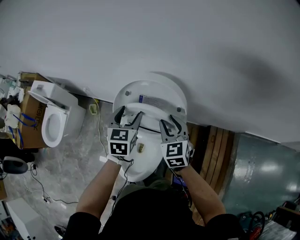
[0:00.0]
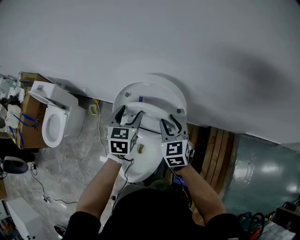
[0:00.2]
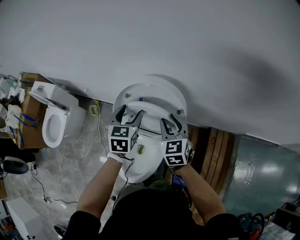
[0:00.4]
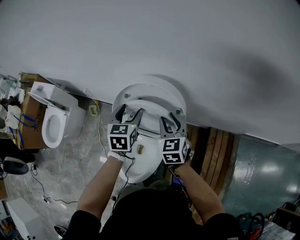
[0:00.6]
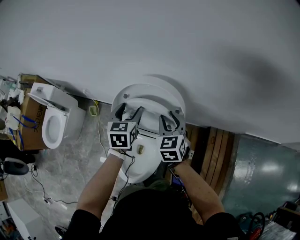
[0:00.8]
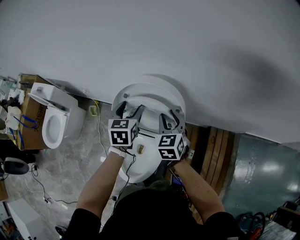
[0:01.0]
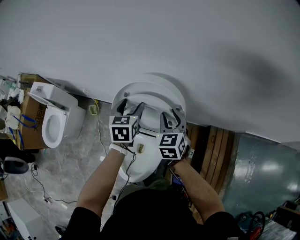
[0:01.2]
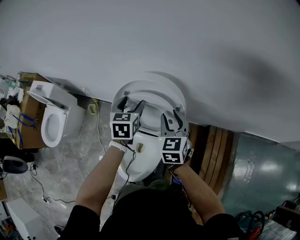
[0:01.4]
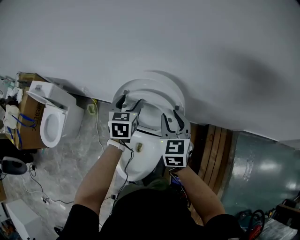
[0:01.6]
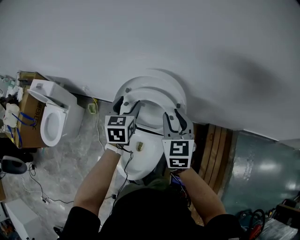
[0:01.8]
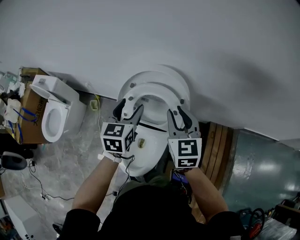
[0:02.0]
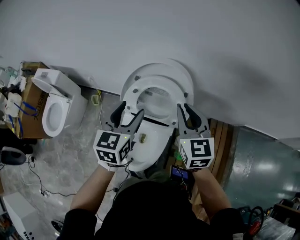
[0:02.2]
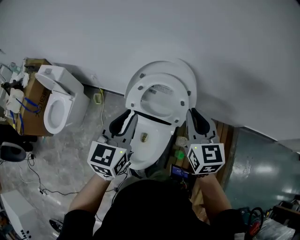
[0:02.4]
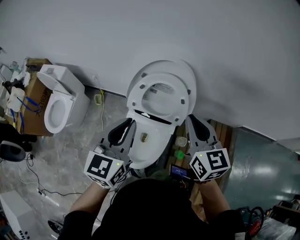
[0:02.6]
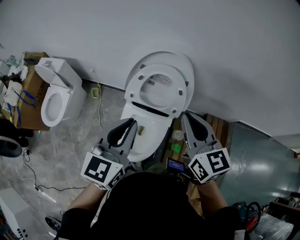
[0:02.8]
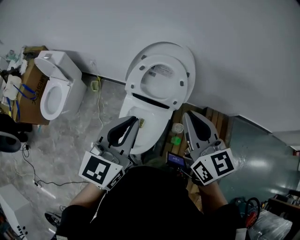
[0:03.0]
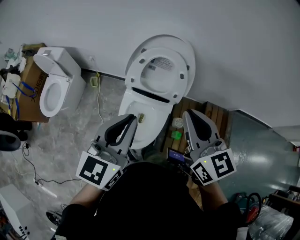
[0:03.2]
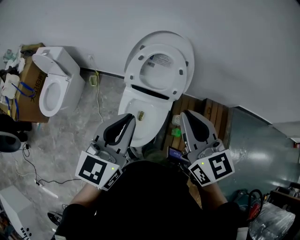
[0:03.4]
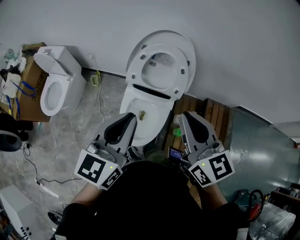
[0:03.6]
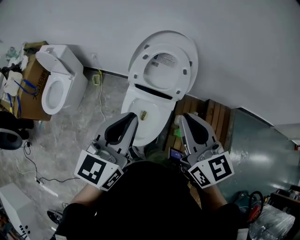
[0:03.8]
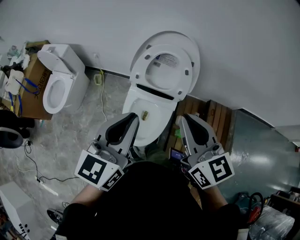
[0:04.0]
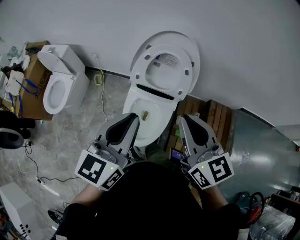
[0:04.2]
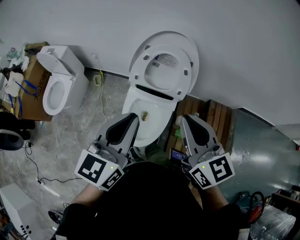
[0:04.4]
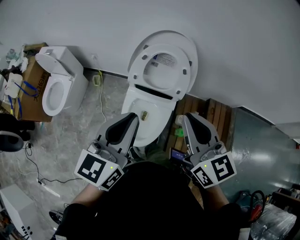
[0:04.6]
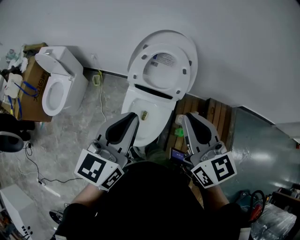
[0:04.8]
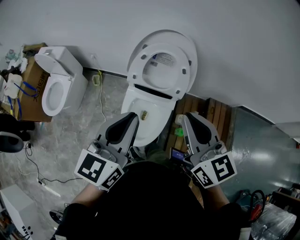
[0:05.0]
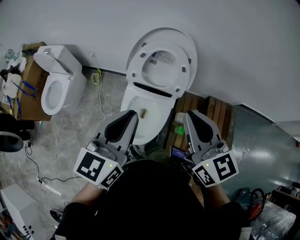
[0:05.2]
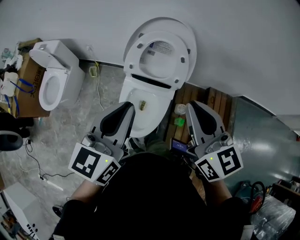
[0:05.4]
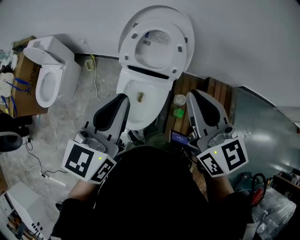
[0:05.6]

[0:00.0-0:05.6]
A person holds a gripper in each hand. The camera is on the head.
0:00.0 to 0:01.4: The left gripper ends up roughly 5 cm from where it was.
0:01.4 to 0:02.8: Both grippers travel together backward and upward, about 30 cm. The right gripper rotates some 30 degrees, and closes up. The left gripper changes its angle by roughly 30 degrees, and closes its fingers.
0:02.8 to 0:04.2: The grippers both shift backward by approximately 10 cm.
0:04.2 to 0:05.6: The right gripper moves roughly 5 cm.

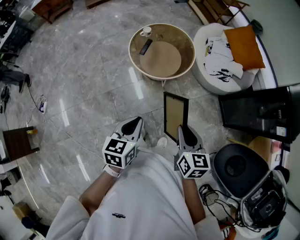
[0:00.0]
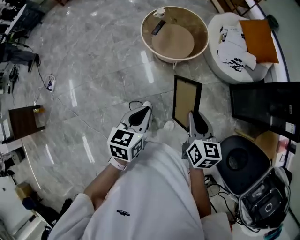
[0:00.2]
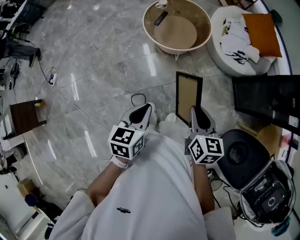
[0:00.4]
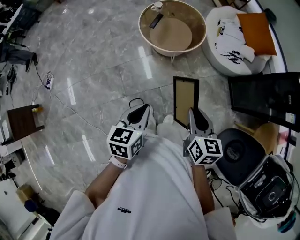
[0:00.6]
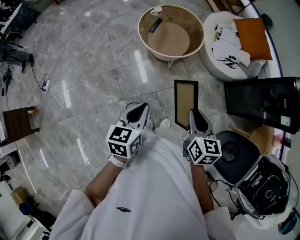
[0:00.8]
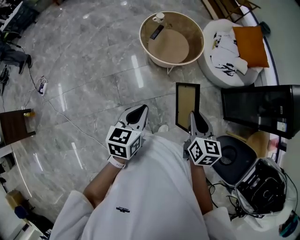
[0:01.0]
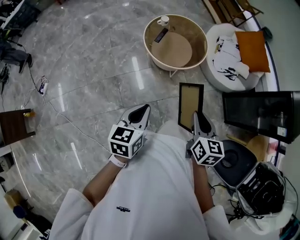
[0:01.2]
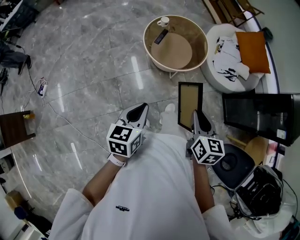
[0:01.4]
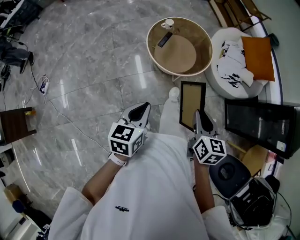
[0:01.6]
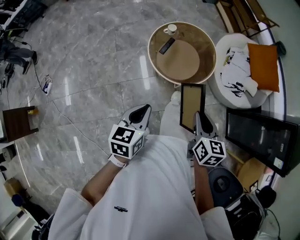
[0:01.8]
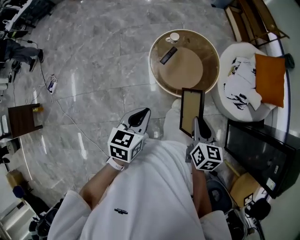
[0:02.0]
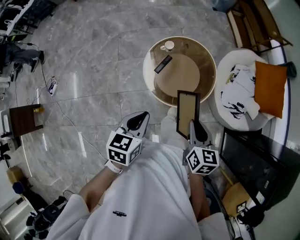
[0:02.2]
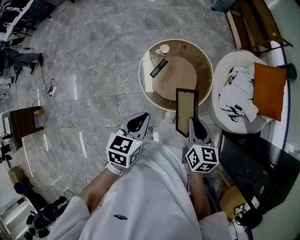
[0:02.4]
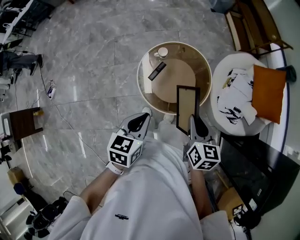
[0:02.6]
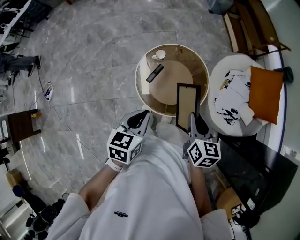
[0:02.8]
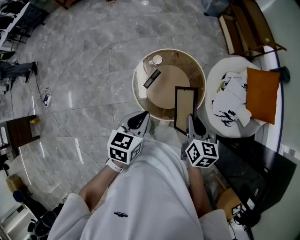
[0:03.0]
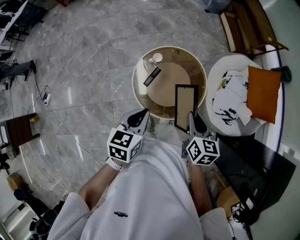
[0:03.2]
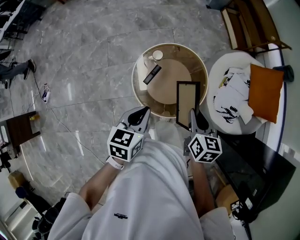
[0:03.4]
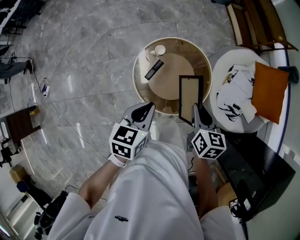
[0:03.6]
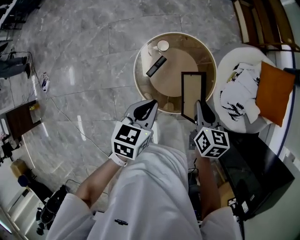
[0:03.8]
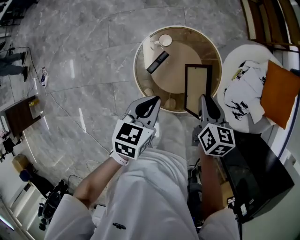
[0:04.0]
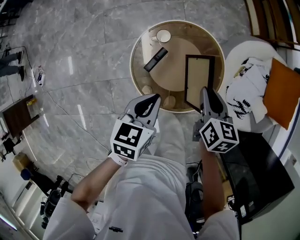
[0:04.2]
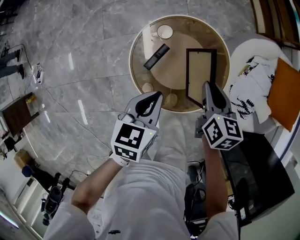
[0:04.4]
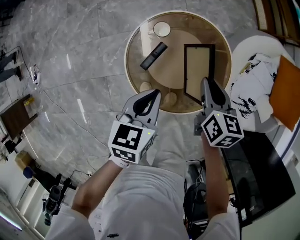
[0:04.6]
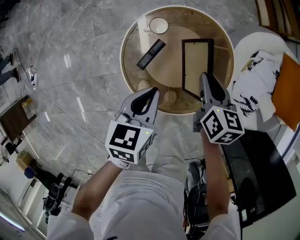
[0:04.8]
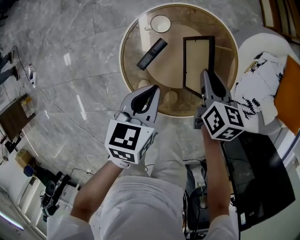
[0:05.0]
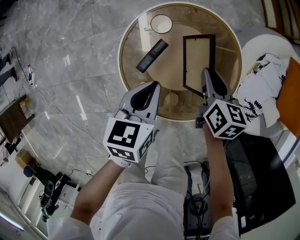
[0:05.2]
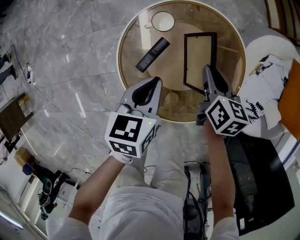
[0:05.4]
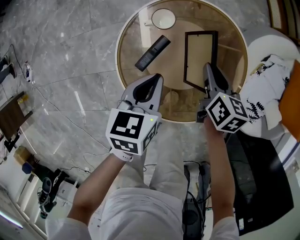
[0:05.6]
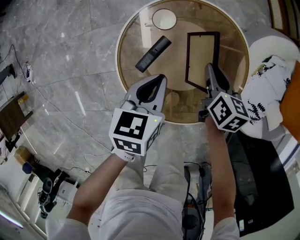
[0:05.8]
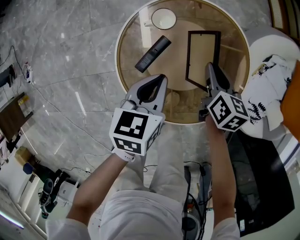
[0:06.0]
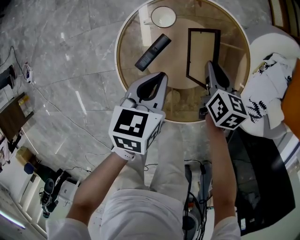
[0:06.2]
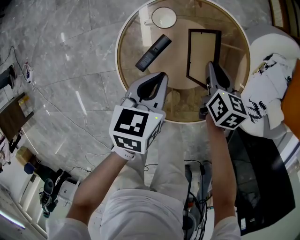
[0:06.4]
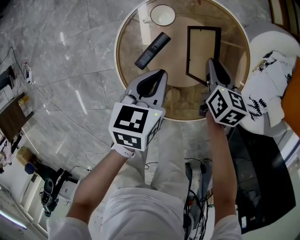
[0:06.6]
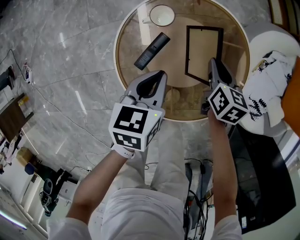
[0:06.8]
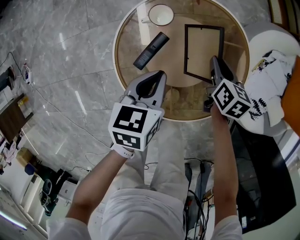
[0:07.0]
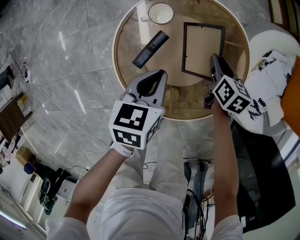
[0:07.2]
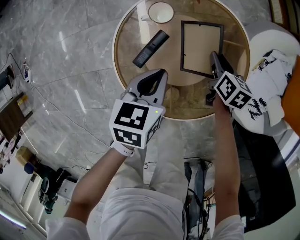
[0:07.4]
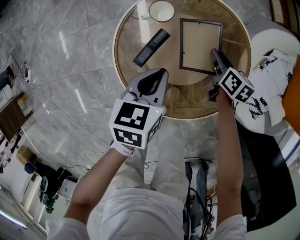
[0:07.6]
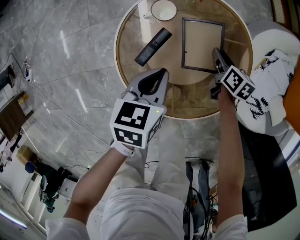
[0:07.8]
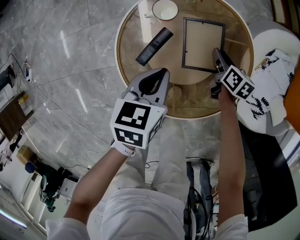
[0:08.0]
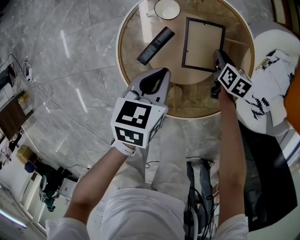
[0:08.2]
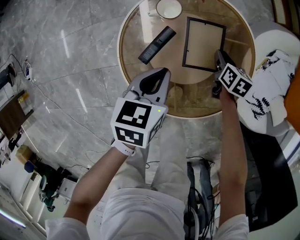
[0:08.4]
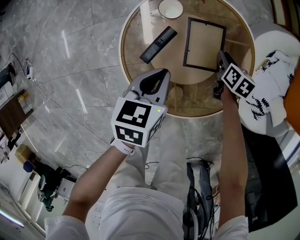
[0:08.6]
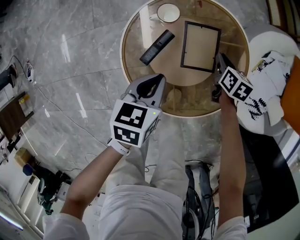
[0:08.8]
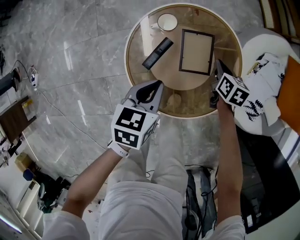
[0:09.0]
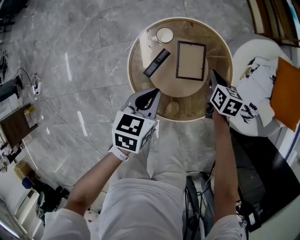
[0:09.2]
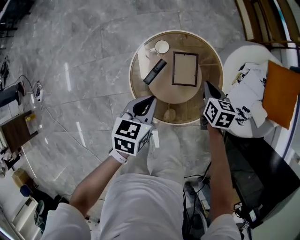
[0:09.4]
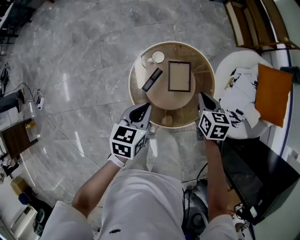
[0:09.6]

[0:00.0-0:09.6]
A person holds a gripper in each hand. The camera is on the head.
0:00.0 to 0:01.6: The right gripper heads forward, covering about 10 cm. Meanwhile the left gripper moves to the left and forward, some 10 cm.
0:01.6 to 0:03.2: Both grippers move forward, approximately 40 cm.
0:03.2 to 0:04.8: Both grippers travel together downward and forward, about 30 cm.
0:04.8 to 0:06.4: The two grippers go about 15 cm downward.
0:06.4 to 0:08.0: The right gripper travels downward by some 10 cm.
0:08.0 to 0:09.6: The two grippers go some 30 cm upward. The right gripper turns by some 20 degrees, and closes its fingers.

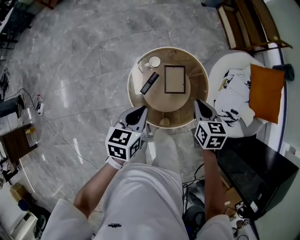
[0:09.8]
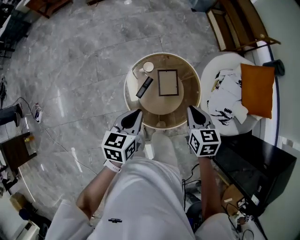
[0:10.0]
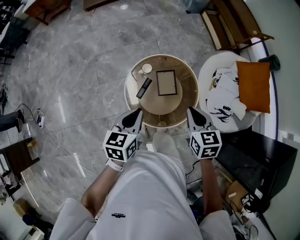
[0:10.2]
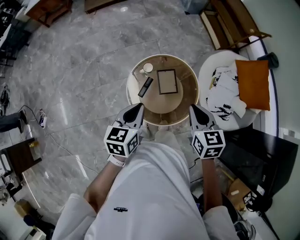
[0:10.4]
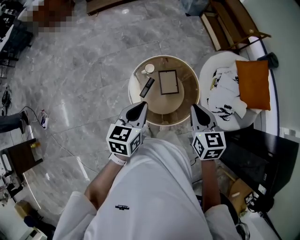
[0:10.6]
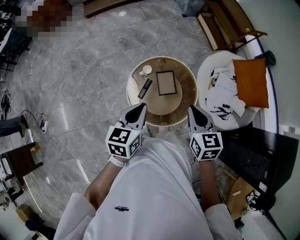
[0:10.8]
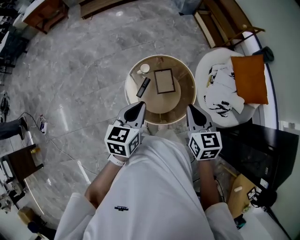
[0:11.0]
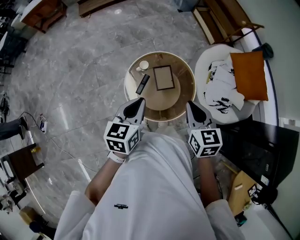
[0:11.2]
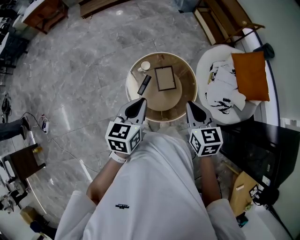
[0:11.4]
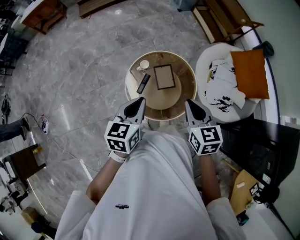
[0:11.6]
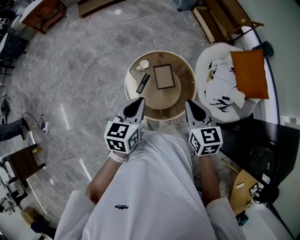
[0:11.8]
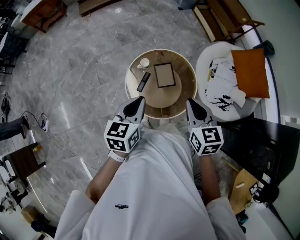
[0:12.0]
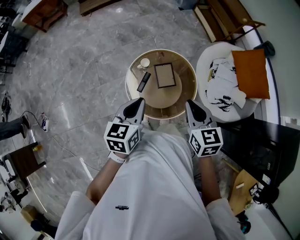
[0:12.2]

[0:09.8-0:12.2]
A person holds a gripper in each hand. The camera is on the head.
0:09.8 to 0:11.0: The left gripper shifts roughly 15 cm upward. The right gripper shifts about 20 cm upward and backward.
0:11.0 to 0:12.2: The two grippers keep their place.

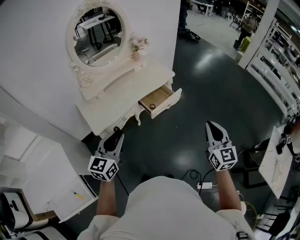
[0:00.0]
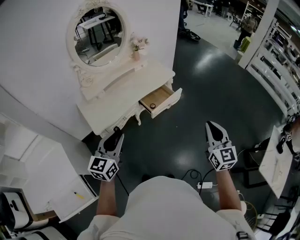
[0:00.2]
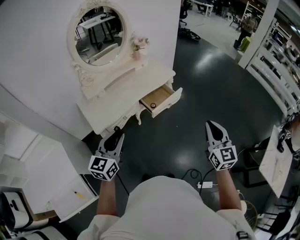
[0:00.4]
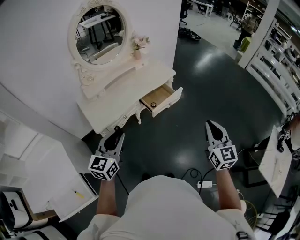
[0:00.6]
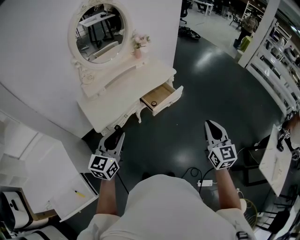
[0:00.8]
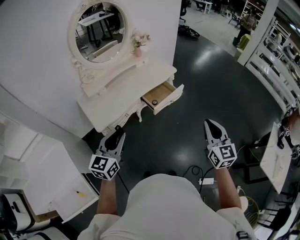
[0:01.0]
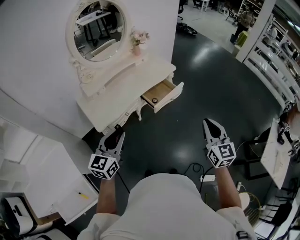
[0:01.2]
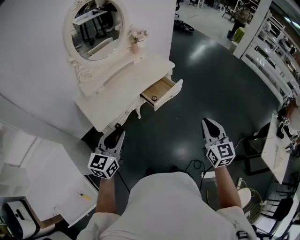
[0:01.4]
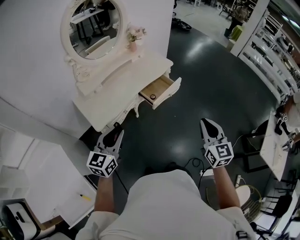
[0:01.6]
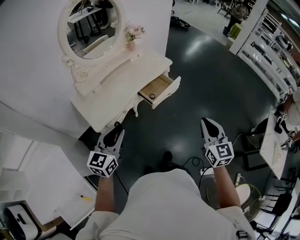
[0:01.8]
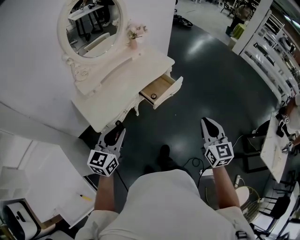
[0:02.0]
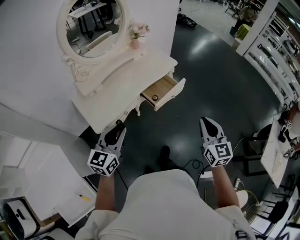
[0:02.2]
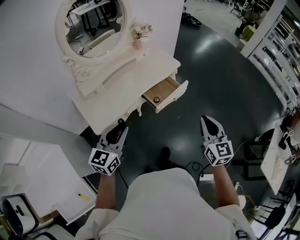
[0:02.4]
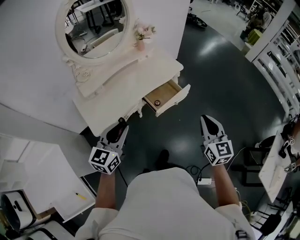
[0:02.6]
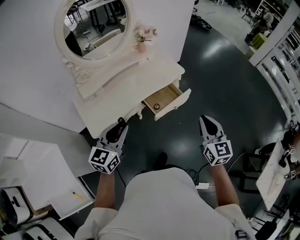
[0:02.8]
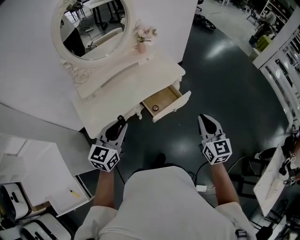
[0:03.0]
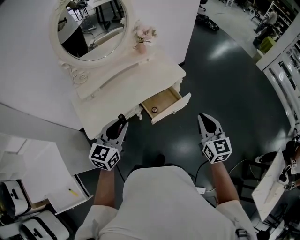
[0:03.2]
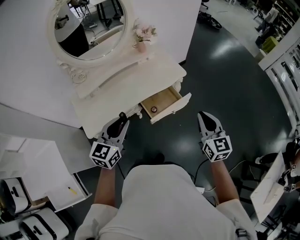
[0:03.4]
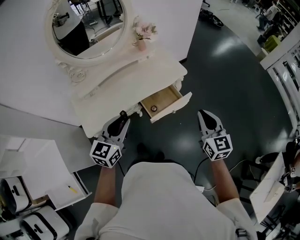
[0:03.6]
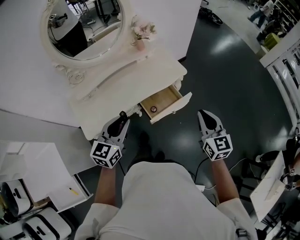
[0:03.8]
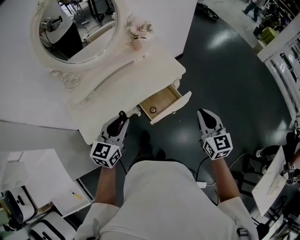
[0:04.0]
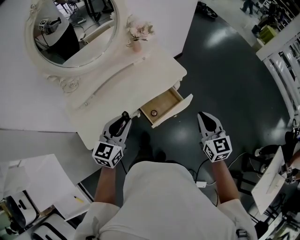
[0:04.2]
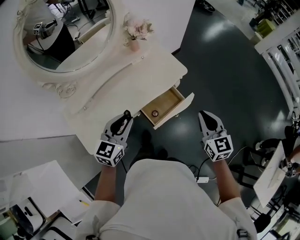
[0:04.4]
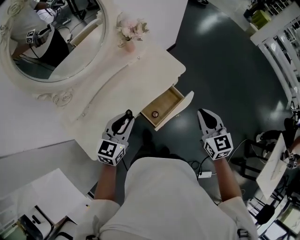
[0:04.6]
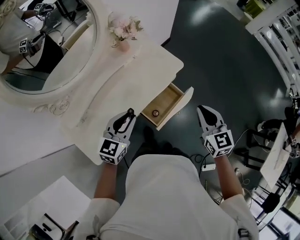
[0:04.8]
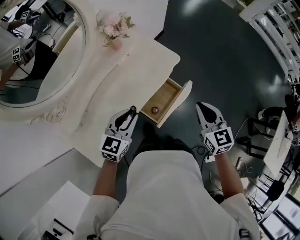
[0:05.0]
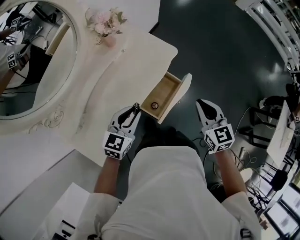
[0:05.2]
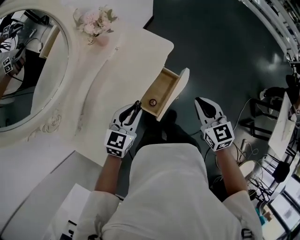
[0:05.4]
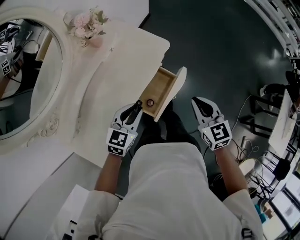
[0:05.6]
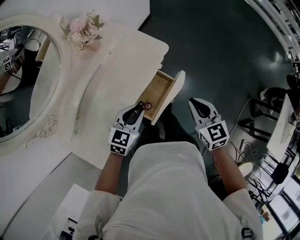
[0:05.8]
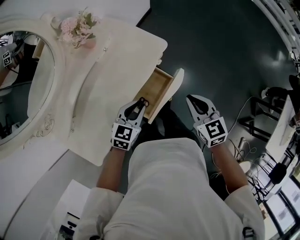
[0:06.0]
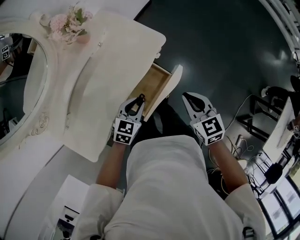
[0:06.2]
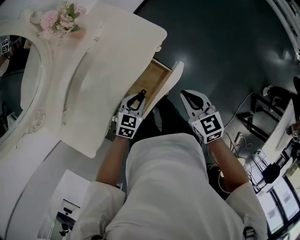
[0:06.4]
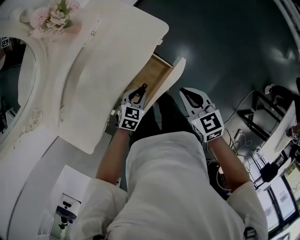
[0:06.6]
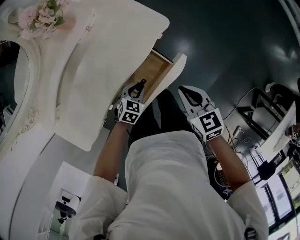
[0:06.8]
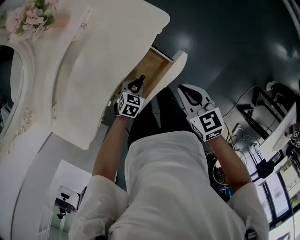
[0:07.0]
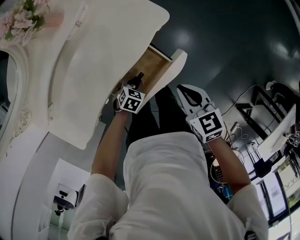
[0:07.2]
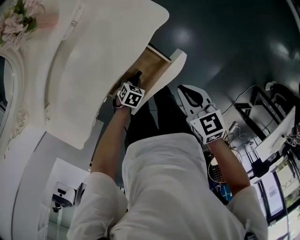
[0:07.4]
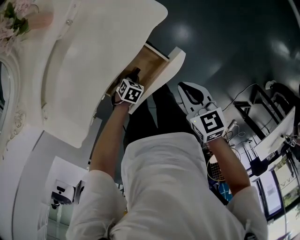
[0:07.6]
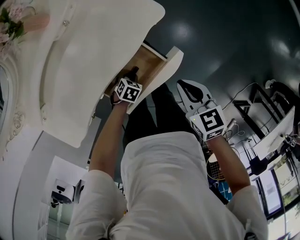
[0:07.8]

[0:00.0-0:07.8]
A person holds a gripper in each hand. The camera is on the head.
0:00.0 to 0:01.6: Both grippers move to the left, some 5 cm.
0:01.6 to 0:03.2: Both grippers travel together forward, approximately 25 cm.
0:03.2 to 0:04.6: The grippers both shift forward and downward by about 15 cm.
0:04.6 to 0:06.2: The right gripper travels downward and forward by roughly 15 cm; the left gripper moves downward, to the right and forward, roughly 25 cm, and turns by roughly 30 degrees.
0:06.2 to 0:07.8: The left gripper heads downward, covering roughly 25 cm, and tips its fingers downward by approximately 30 degrees; the right gripper travels downward by approximately 10 cm.
